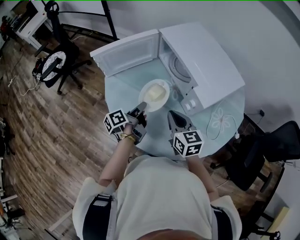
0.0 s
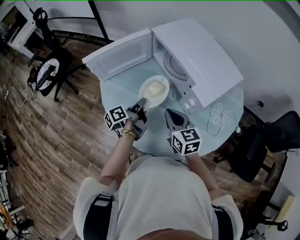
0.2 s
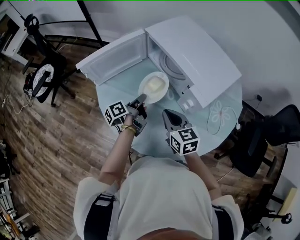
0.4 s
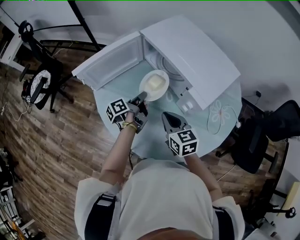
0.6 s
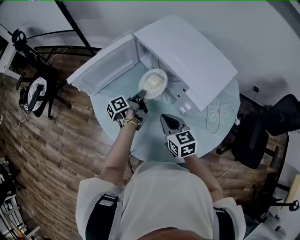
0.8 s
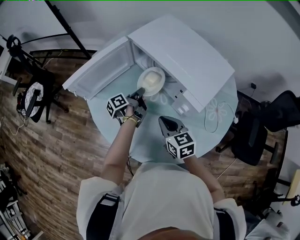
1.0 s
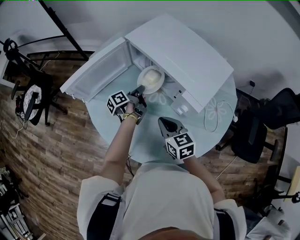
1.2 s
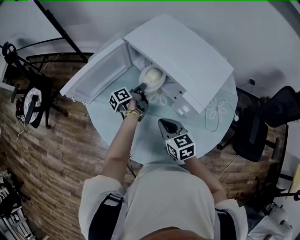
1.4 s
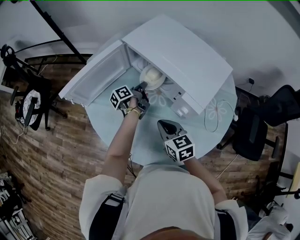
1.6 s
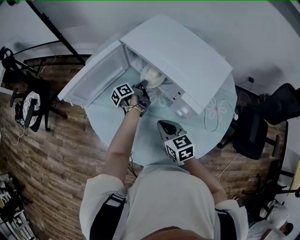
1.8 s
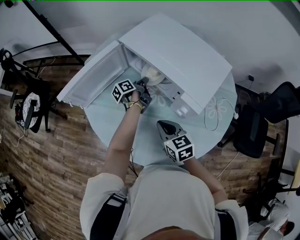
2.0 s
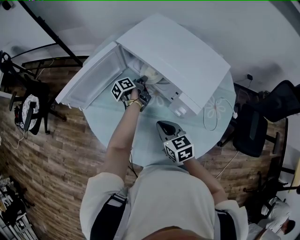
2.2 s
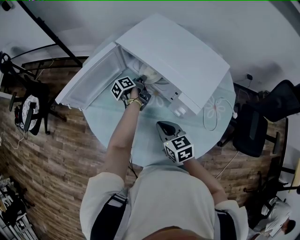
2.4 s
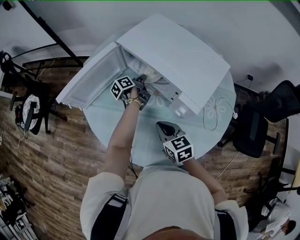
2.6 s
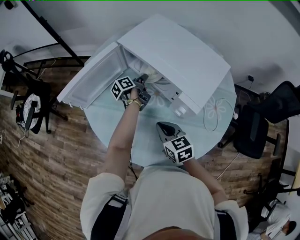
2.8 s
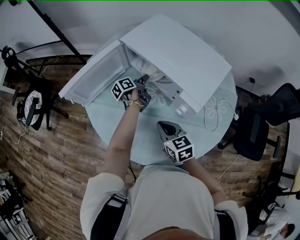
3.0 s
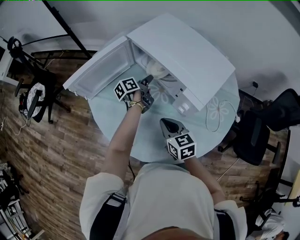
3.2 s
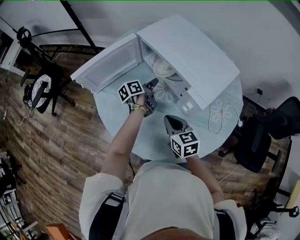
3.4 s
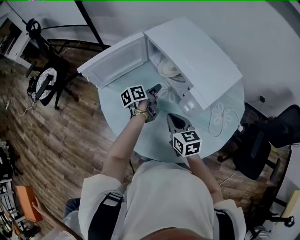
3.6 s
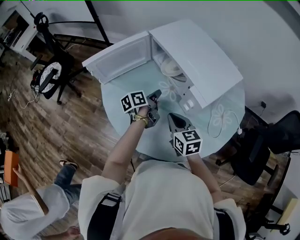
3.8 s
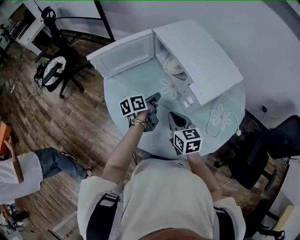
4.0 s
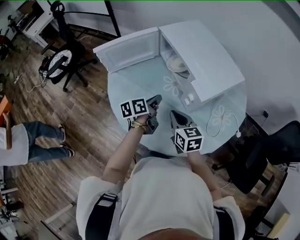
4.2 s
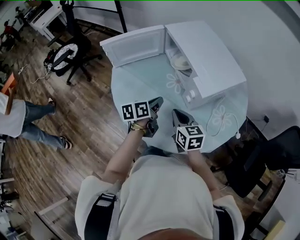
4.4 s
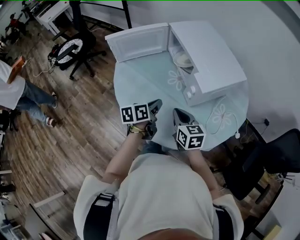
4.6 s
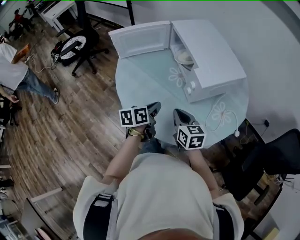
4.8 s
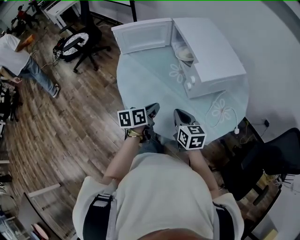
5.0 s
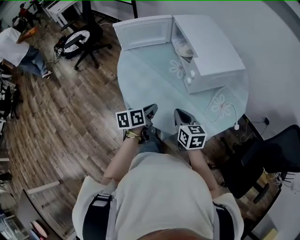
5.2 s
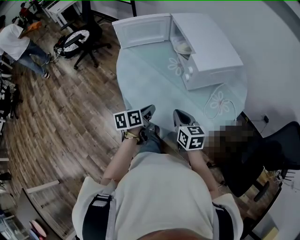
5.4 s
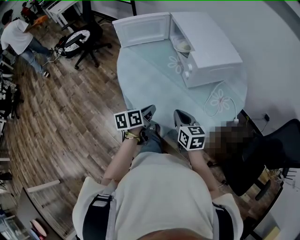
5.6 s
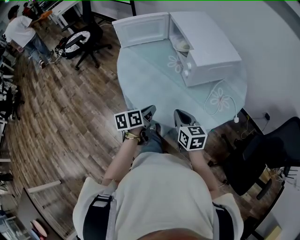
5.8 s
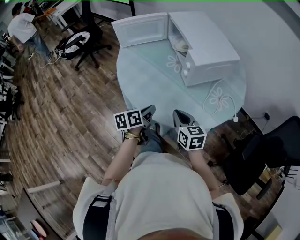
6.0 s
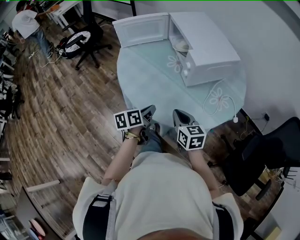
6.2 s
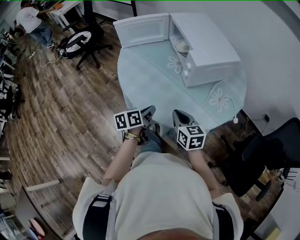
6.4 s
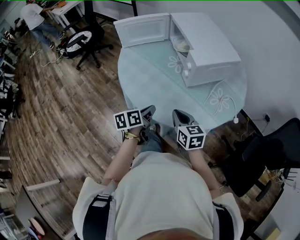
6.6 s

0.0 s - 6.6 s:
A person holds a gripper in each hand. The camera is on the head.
0.0 s - 1.6 s: The right gripper heads downward, covering roughly 5 cm.
3.2 s - 5.0 s: The right gripper ends up approximately 15 cm from where it was.
5.0 s - 6.6 s: The right gripper moves about 10 cm.

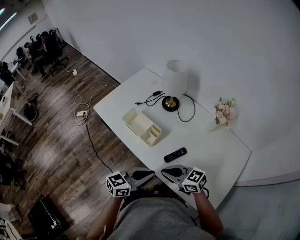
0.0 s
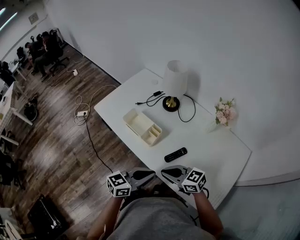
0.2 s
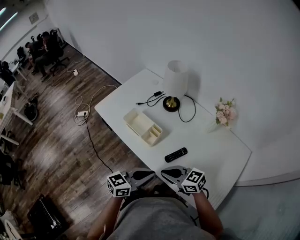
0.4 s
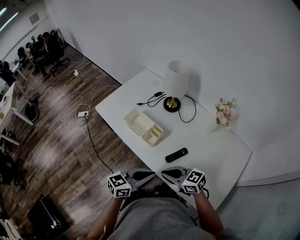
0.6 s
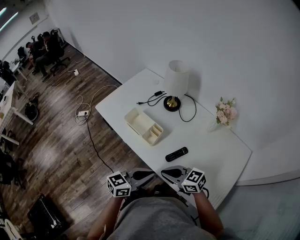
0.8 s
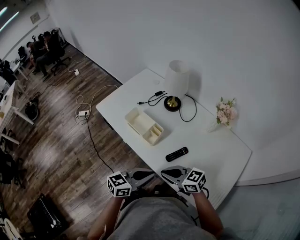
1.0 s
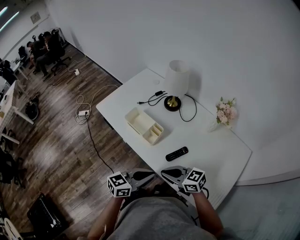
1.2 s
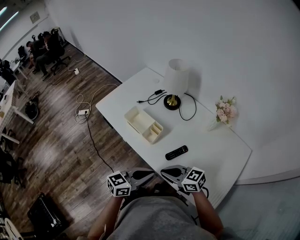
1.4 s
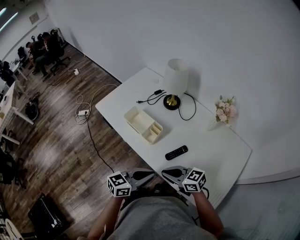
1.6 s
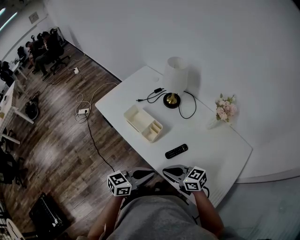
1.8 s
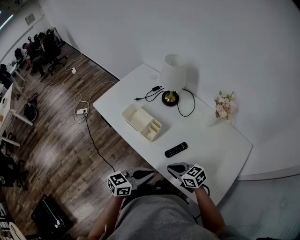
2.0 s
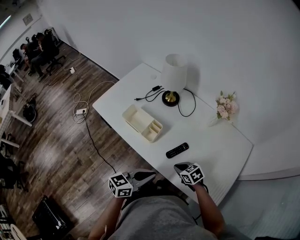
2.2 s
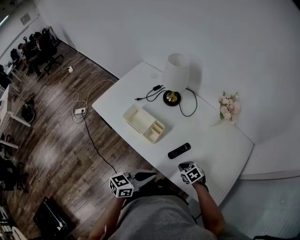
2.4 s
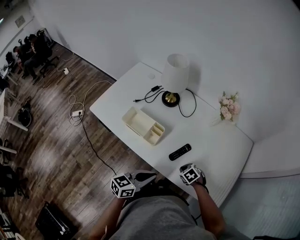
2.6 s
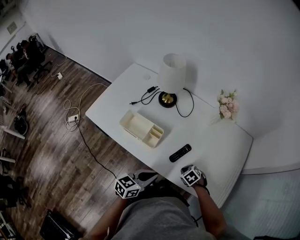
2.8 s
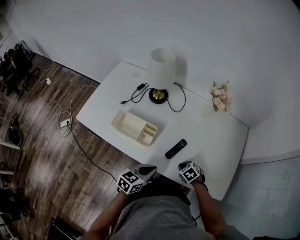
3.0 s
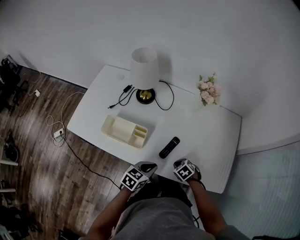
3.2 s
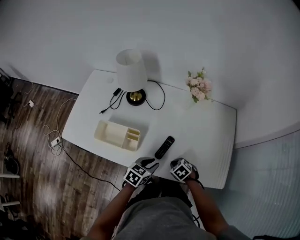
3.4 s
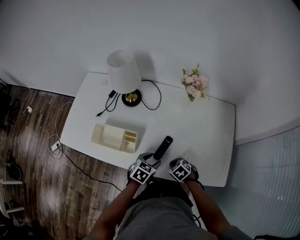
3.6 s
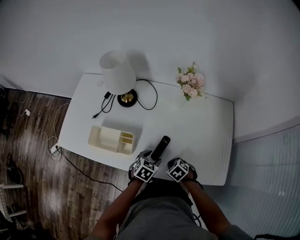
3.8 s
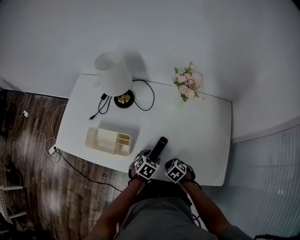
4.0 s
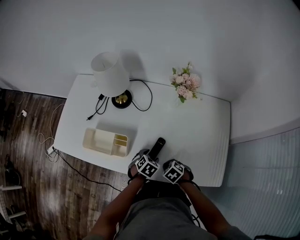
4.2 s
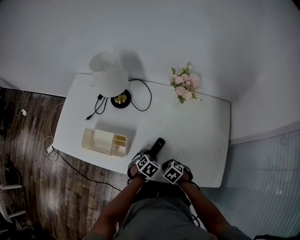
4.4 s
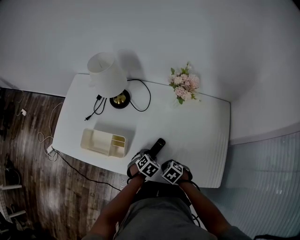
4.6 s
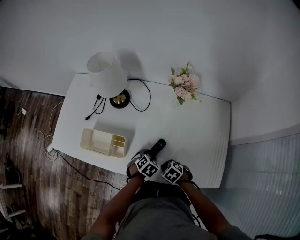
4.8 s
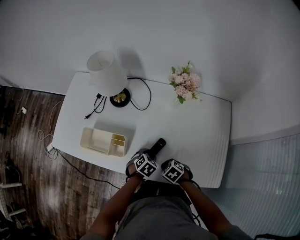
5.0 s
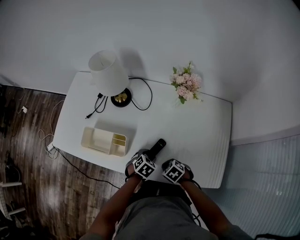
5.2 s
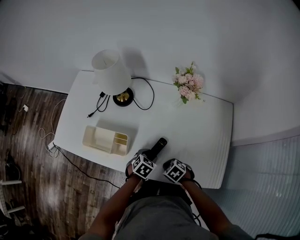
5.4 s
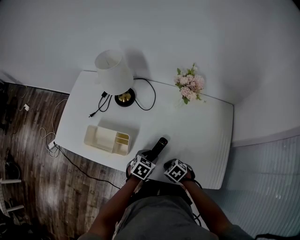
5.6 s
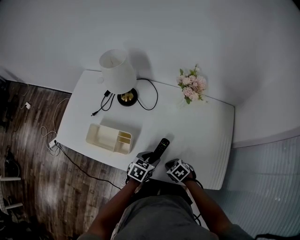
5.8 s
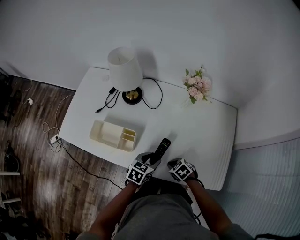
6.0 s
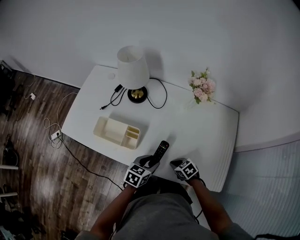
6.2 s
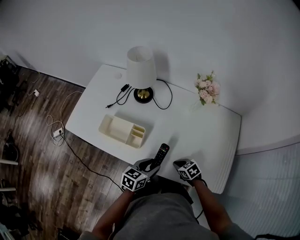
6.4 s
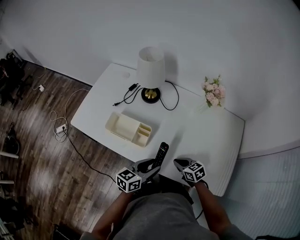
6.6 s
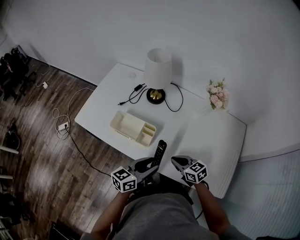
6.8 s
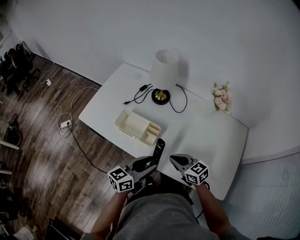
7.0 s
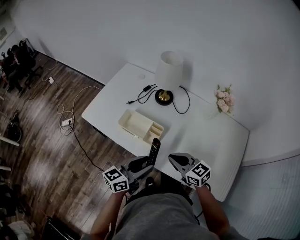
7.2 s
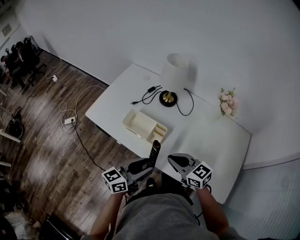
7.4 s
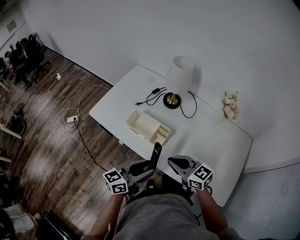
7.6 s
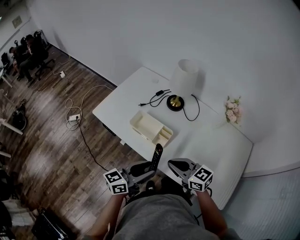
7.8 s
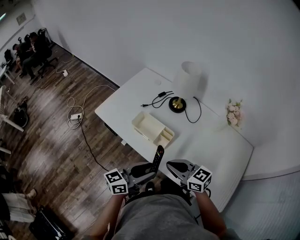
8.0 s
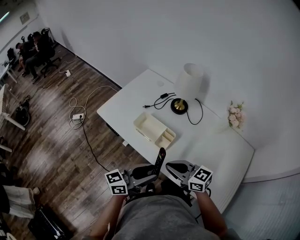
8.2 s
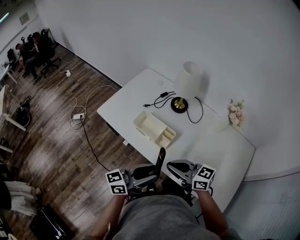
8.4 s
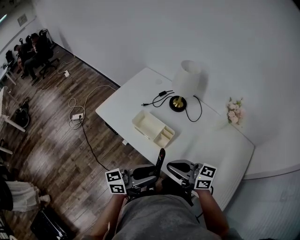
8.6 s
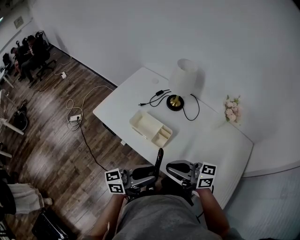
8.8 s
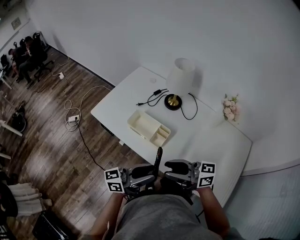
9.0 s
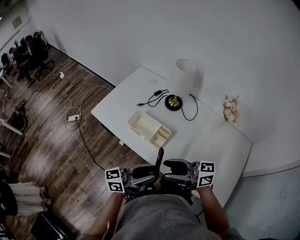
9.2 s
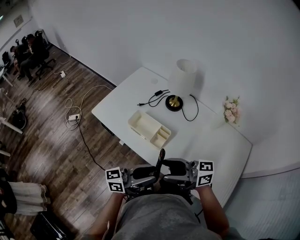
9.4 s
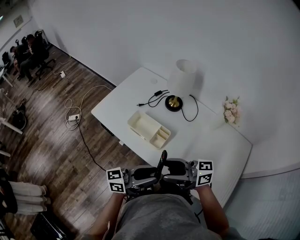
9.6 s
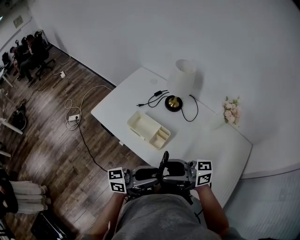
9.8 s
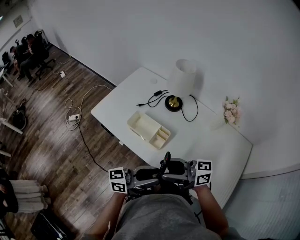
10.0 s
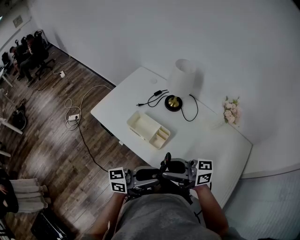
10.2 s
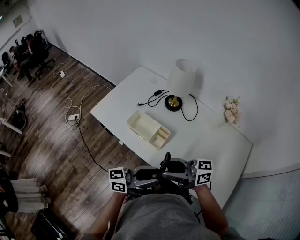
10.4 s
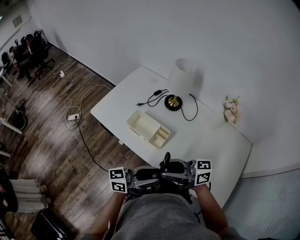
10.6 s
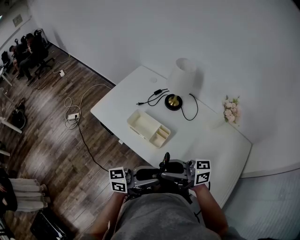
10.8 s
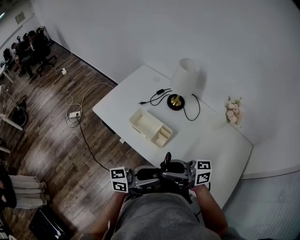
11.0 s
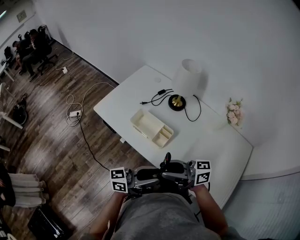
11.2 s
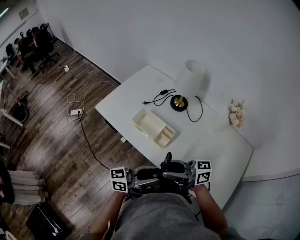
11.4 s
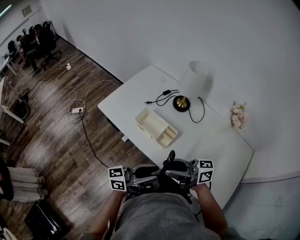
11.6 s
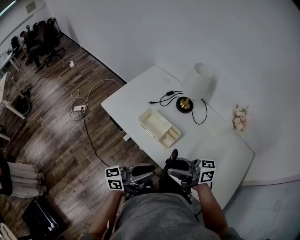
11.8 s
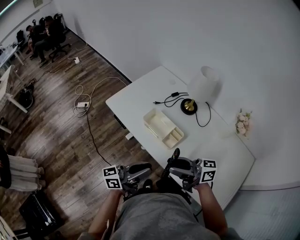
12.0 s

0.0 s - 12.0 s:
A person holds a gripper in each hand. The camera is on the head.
0.0 s - 1.6 s: The grippers move only a little.
1.6 s - 3.0 s: The left gripper heads downward, covering some 10 cm, and swivels about 20 degrees; the right gripper moves downward, approximately 20 cm, and angles its fingers downward, by approximately 50 degrees.
3.0 s - 4.4 s: The left gripper moves downward, to the right and forward, approximately 20 cm, points its fingers roughly 40 degrees further downward, and opens.
4.4 s - 6.0 s: The left gripper shifts roughly 10 cm upward, and swivels roughly 30 degrees.
6.0 s - 7.6 s: The right gripper heads upward and to the left, covering some 30 cm, and points its fingers roughly 50 degrees further upward. The left gripper moves to the left and upward, about 25 cm, and points its fingers approximately 40 degrees further upward.
7.6 s - 9.0 s: The right gripper shifts about 5 cm upward, swivels about 30 degrees, and opens up.
9.0 s - 10.4 s: The grippers make only small movements.
10.4 s - 12.0 s: The left gripper moves roughly 10 cm, and closes.

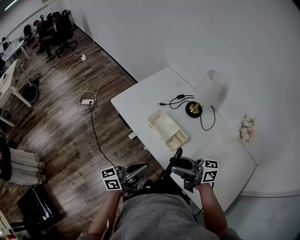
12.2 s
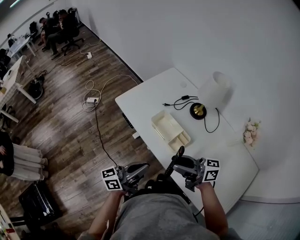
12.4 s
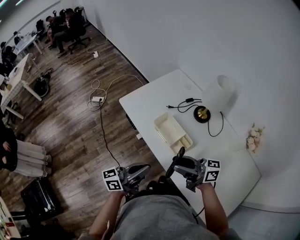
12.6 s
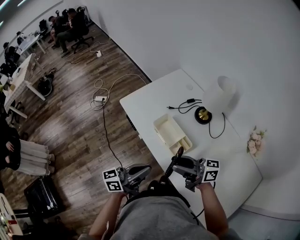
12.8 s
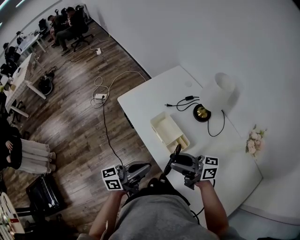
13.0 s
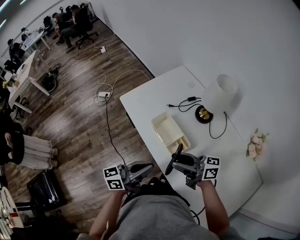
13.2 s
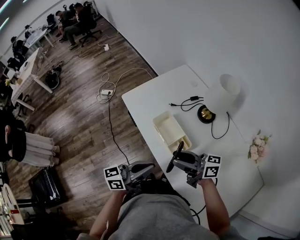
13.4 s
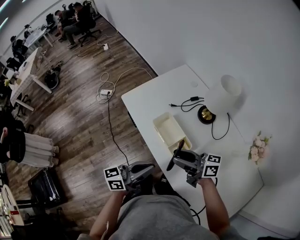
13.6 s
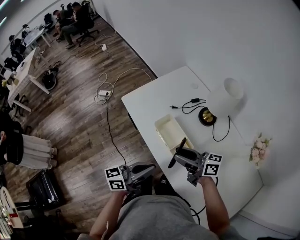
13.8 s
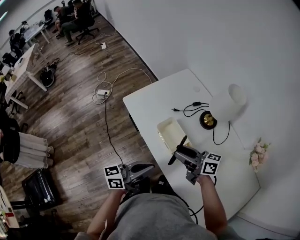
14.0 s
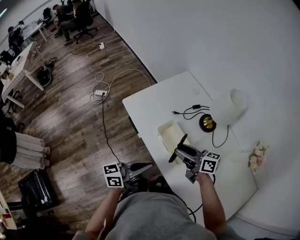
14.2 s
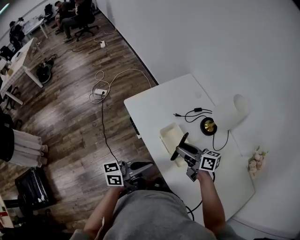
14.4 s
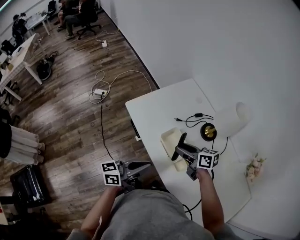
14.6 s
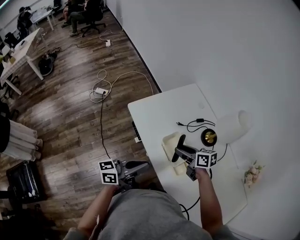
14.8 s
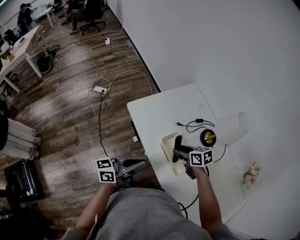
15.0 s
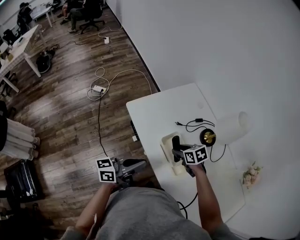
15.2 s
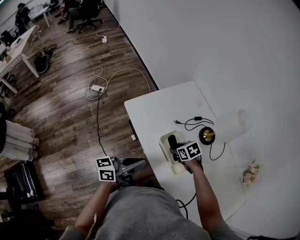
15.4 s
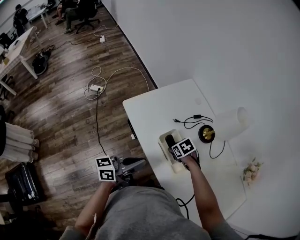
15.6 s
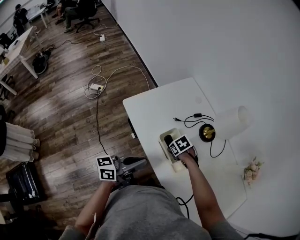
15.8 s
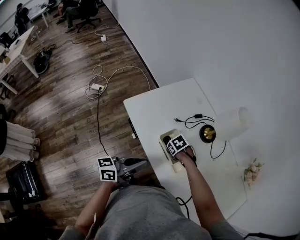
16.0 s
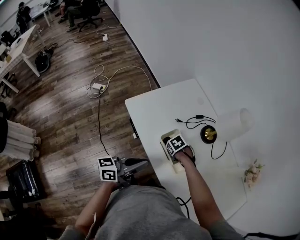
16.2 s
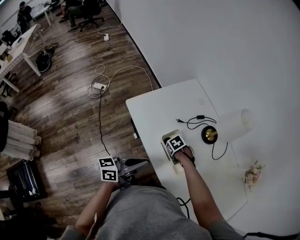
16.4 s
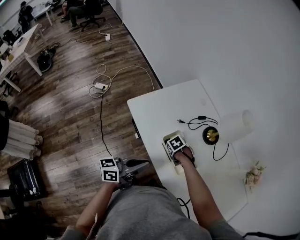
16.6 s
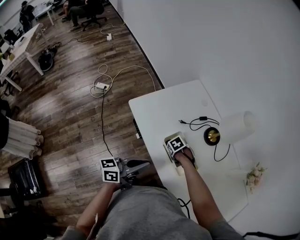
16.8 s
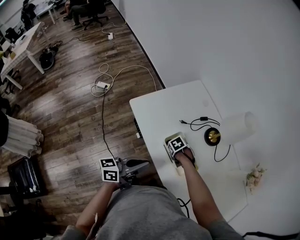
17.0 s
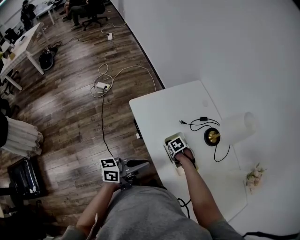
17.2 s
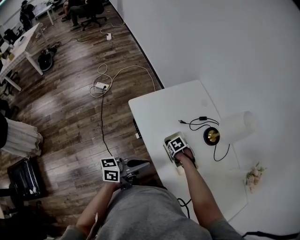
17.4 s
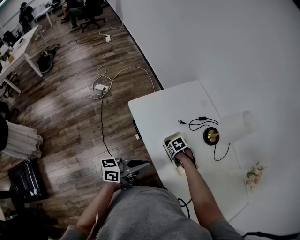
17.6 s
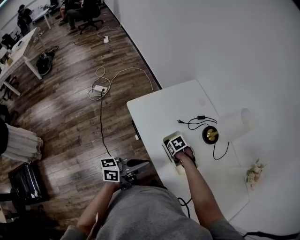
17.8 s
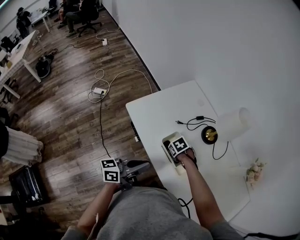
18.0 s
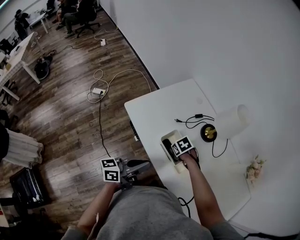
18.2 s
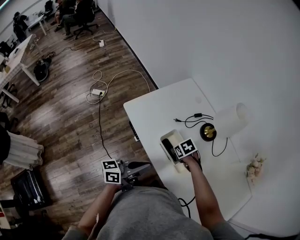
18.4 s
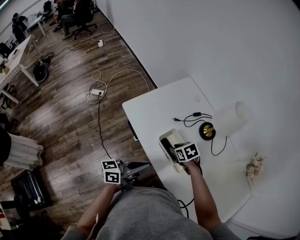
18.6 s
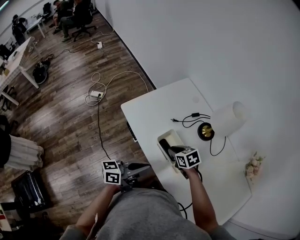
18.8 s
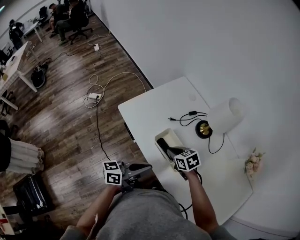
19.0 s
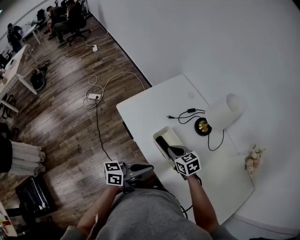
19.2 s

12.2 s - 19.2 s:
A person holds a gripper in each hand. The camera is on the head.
12.2 s - 13.6 s: The left gripper goes approximately 5 cm to the right; the right gripper heads forward and to the right, covering approximately 10 cm.
13.6 s - 15.0 s: The right gripper goes some 20 cm forward and downward, and tips its fingers downward by some 50 degrees; the left gripper shifts approximately 15 cm to the left and forward.
15.0 s - 16.4 s: The right gripper heads downward, covering roughly 15 cm, and tips its fingers downward by some 40 degrees.
16.4 s - 17.8 s: There are only small adjustments of the grippers.
17.8 s - 19.2 s: The right gripper goes roughly 15 cm upward, points its fingers about 40 degrees further upward, and closes its fingers. Meanwhile the left gripper changes place by approximately 5 cm.
